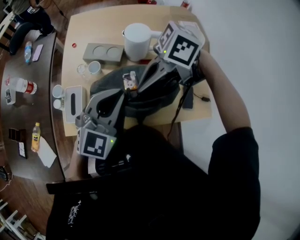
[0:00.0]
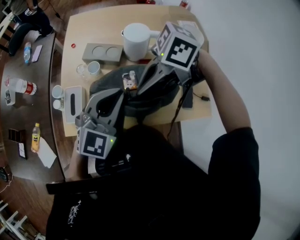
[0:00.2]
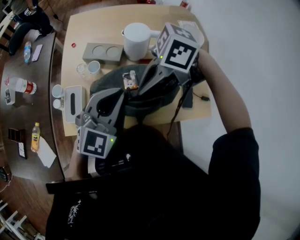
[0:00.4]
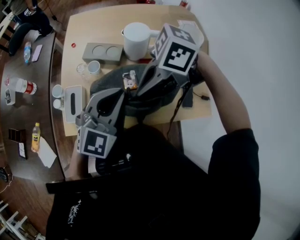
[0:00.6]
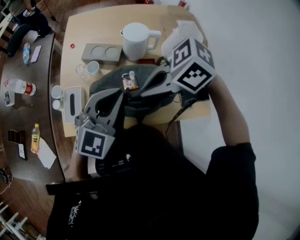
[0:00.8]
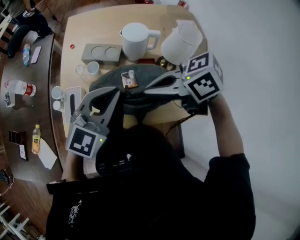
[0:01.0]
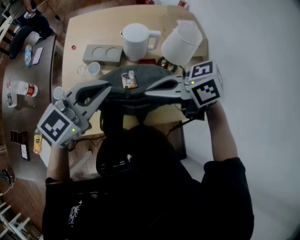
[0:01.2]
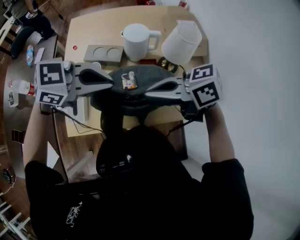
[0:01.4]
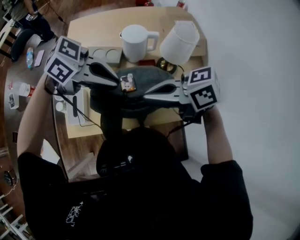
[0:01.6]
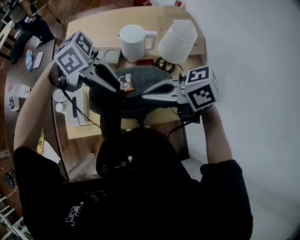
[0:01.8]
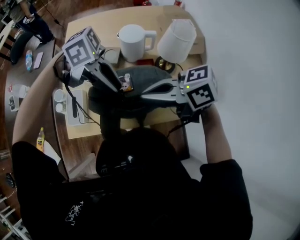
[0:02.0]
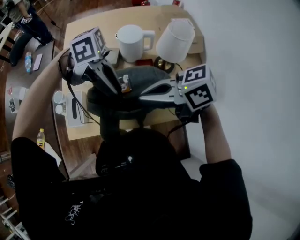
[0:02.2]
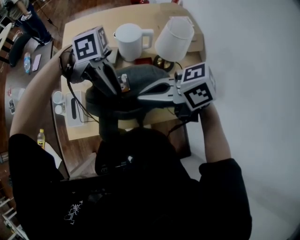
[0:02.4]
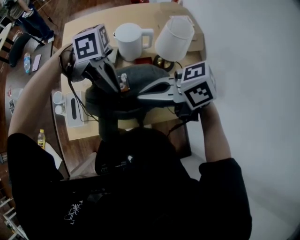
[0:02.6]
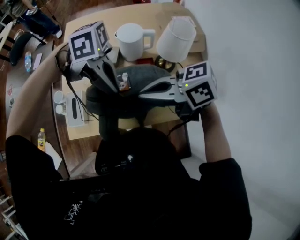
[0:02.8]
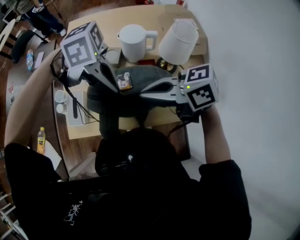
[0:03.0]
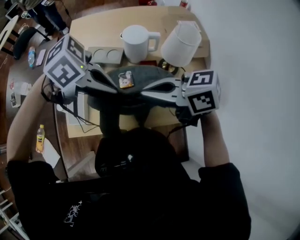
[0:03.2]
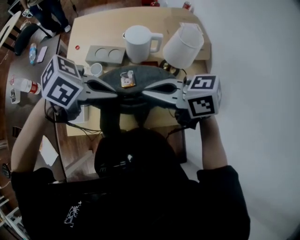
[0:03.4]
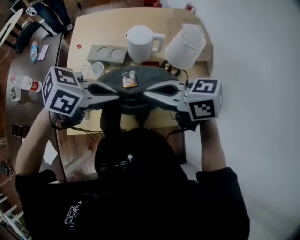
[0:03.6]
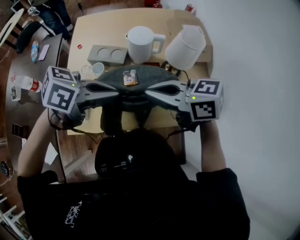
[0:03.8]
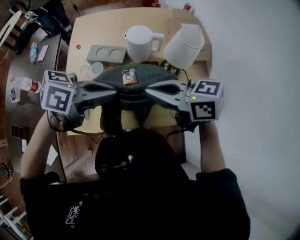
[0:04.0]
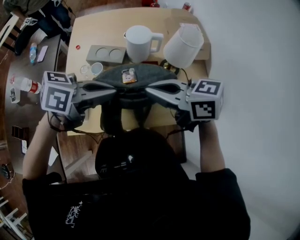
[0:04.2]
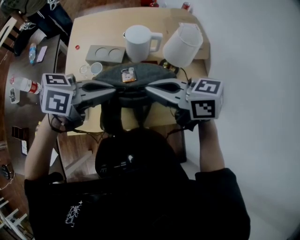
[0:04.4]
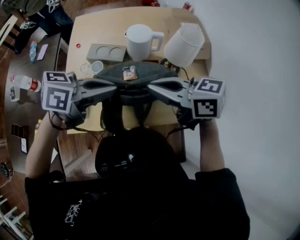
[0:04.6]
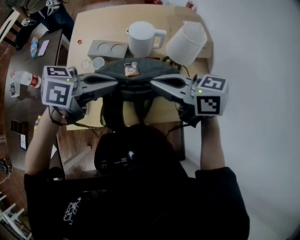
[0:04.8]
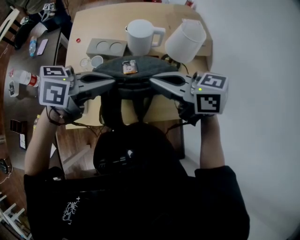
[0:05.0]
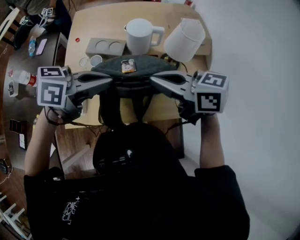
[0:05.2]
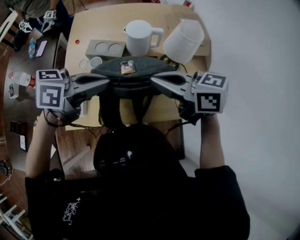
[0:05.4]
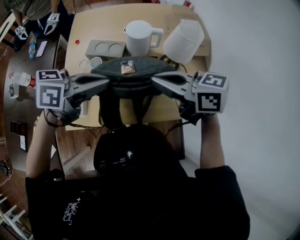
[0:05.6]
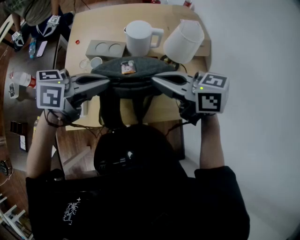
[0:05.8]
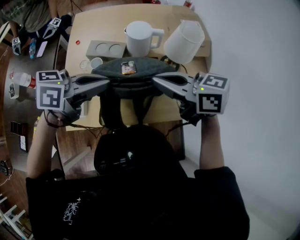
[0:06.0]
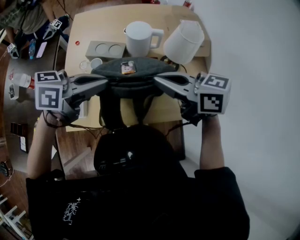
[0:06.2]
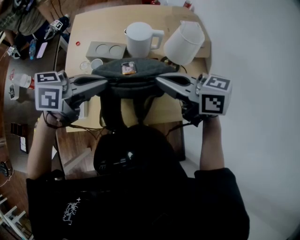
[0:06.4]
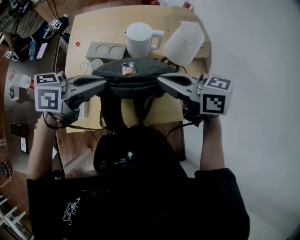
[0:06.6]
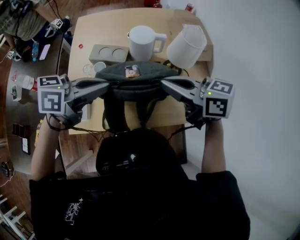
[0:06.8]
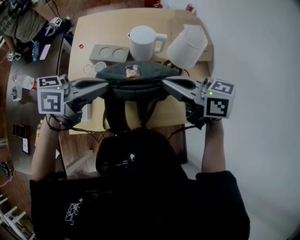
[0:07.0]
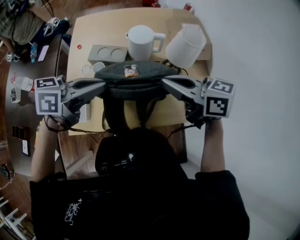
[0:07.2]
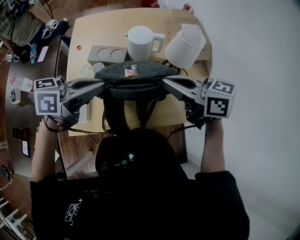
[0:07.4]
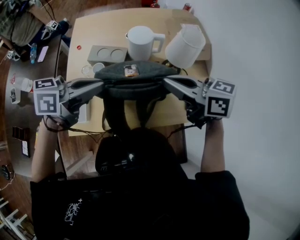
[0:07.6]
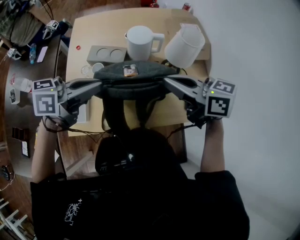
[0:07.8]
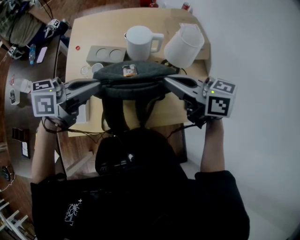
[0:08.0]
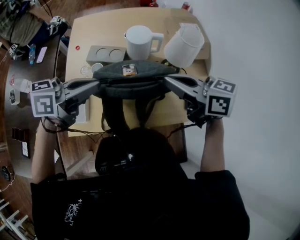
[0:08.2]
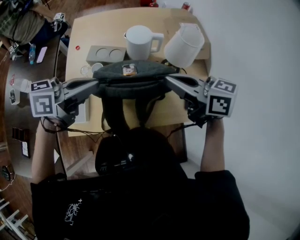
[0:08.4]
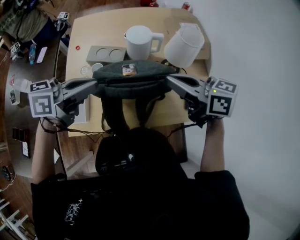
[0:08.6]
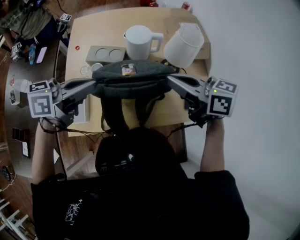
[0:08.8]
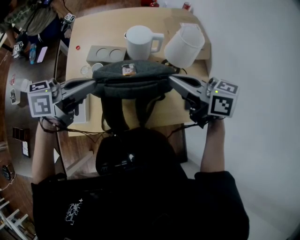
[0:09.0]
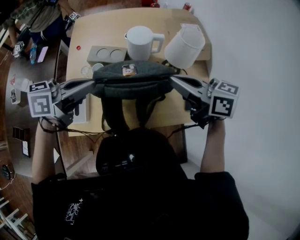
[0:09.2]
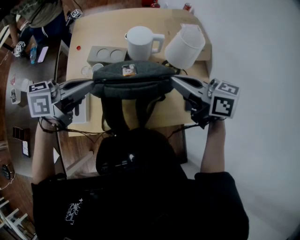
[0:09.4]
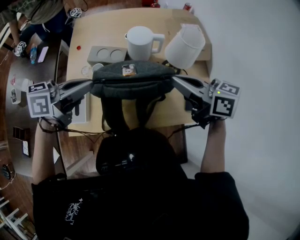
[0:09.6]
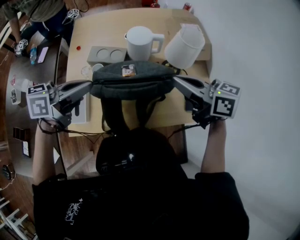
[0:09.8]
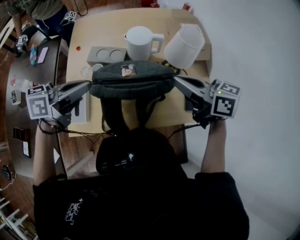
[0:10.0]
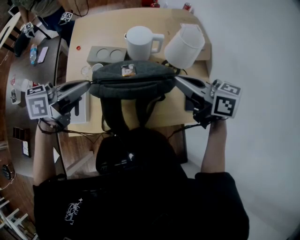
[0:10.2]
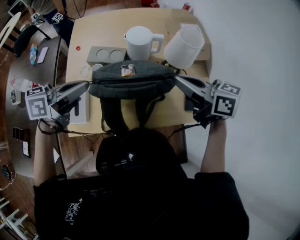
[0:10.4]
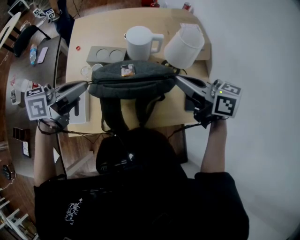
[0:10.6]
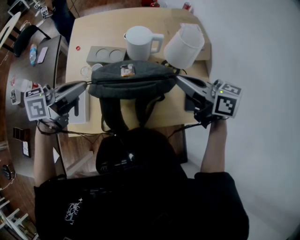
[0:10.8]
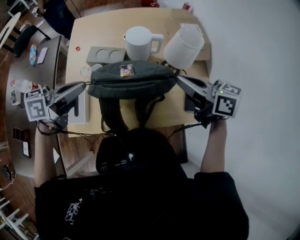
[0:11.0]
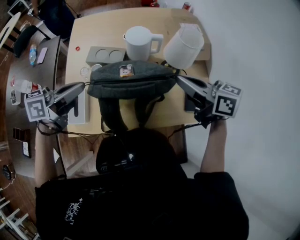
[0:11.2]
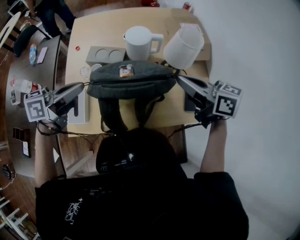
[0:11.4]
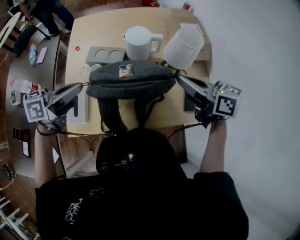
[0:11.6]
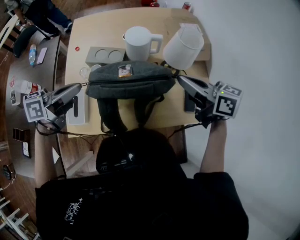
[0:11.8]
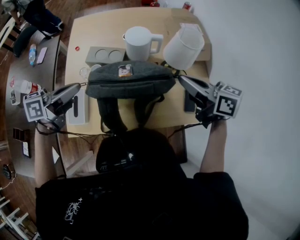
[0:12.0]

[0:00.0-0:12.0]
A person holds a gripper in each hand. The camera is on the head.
0:00.0 to 0:01.6: The left gripper turns by some 80 degrees. The right gripper changes its angle by approximately 40 degrees.
0:01.6 to 0:03.0: The left gripper changes its angle by some 30 degrees, and opens and closes again.
0:03.0 to 0:04.4: The left gripper swivels roughly 60 degrees.
0:04.4 to 0:07.6: There are only small adjustments of the grippers.
0:07.6 to 0:10.4: The grippers make only small movements.
0:10.4 to 0:12.0: The grippers stay close to where they were, moving slightly.

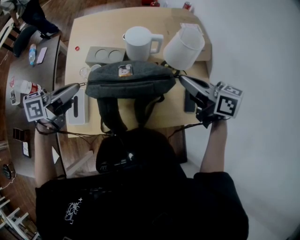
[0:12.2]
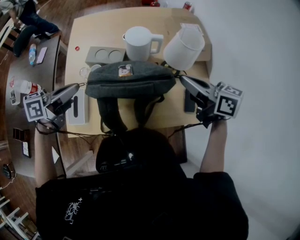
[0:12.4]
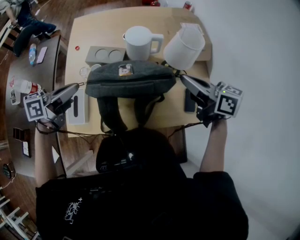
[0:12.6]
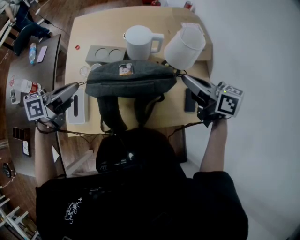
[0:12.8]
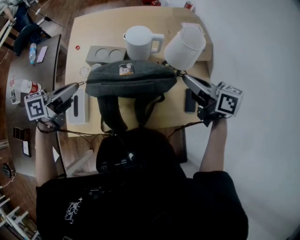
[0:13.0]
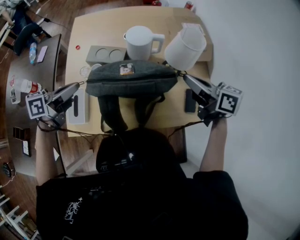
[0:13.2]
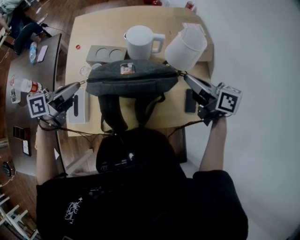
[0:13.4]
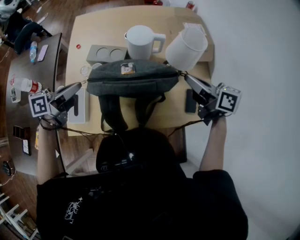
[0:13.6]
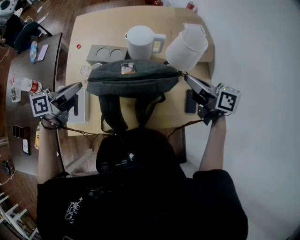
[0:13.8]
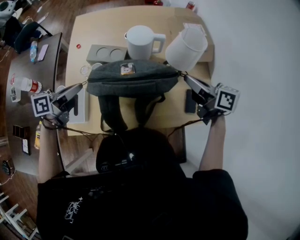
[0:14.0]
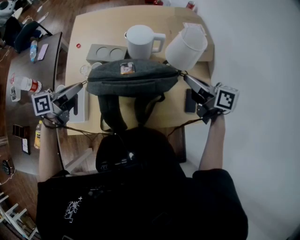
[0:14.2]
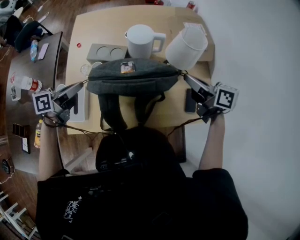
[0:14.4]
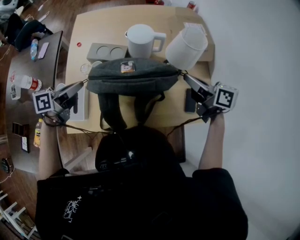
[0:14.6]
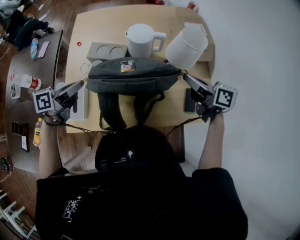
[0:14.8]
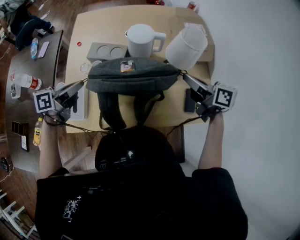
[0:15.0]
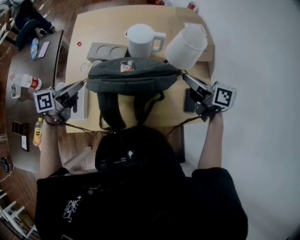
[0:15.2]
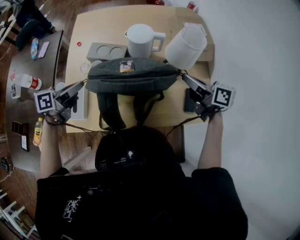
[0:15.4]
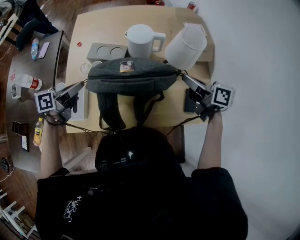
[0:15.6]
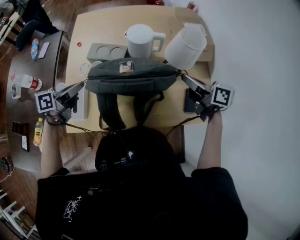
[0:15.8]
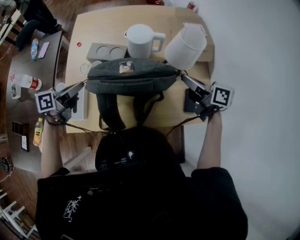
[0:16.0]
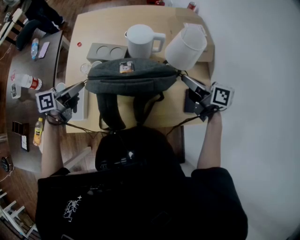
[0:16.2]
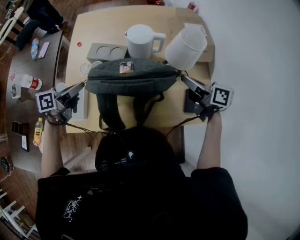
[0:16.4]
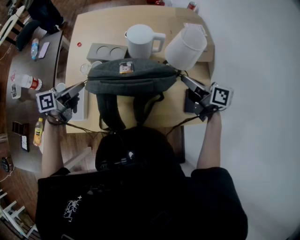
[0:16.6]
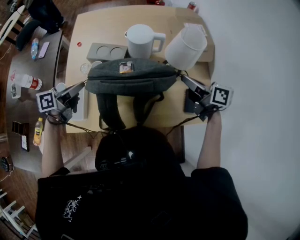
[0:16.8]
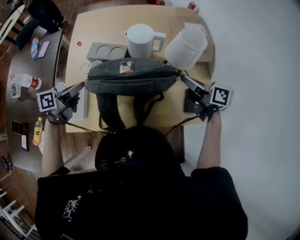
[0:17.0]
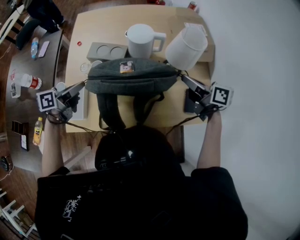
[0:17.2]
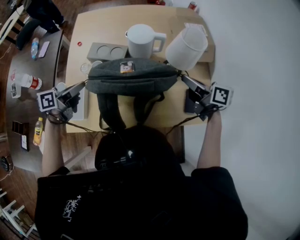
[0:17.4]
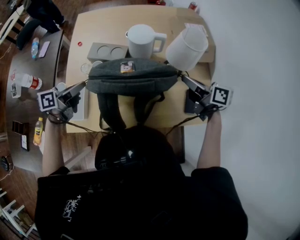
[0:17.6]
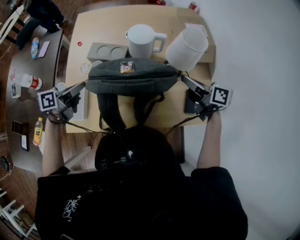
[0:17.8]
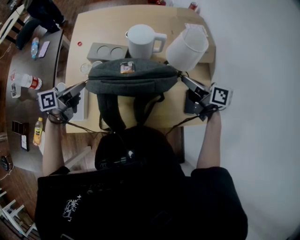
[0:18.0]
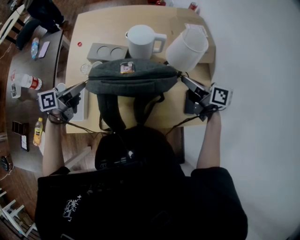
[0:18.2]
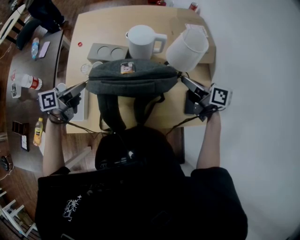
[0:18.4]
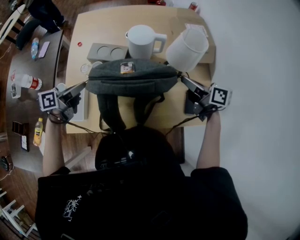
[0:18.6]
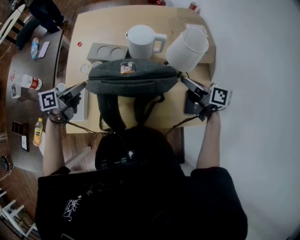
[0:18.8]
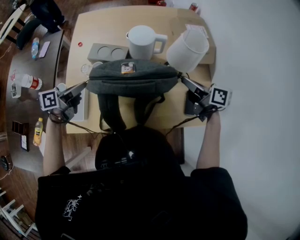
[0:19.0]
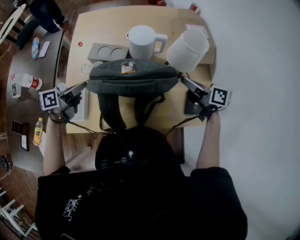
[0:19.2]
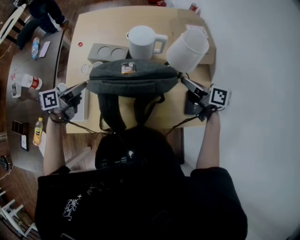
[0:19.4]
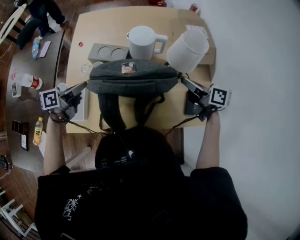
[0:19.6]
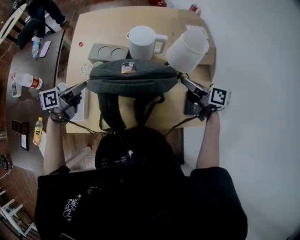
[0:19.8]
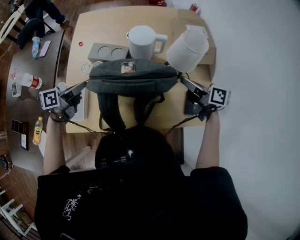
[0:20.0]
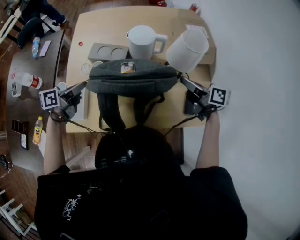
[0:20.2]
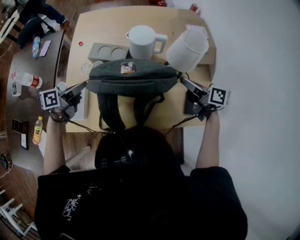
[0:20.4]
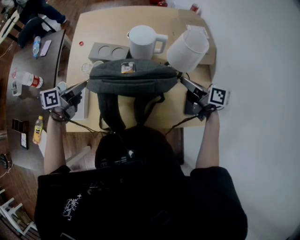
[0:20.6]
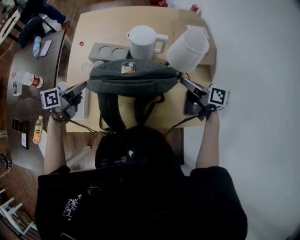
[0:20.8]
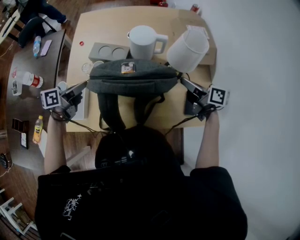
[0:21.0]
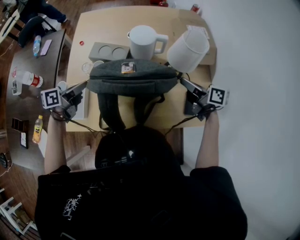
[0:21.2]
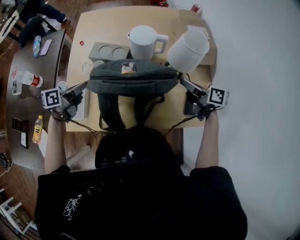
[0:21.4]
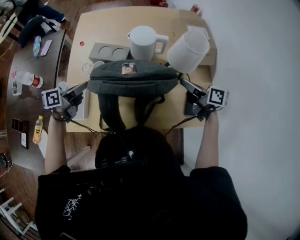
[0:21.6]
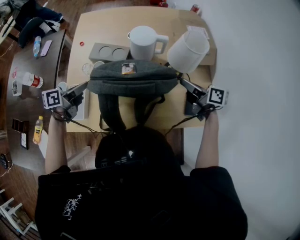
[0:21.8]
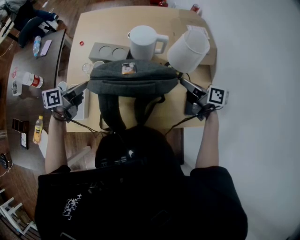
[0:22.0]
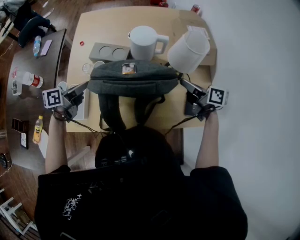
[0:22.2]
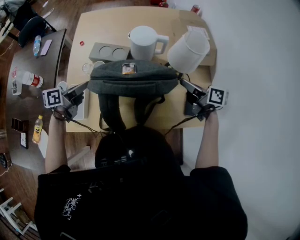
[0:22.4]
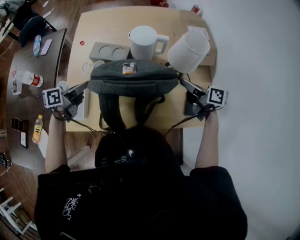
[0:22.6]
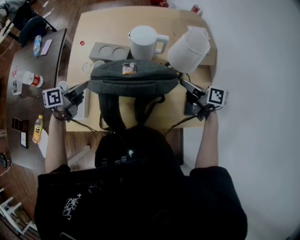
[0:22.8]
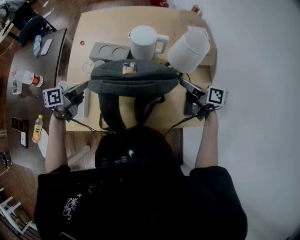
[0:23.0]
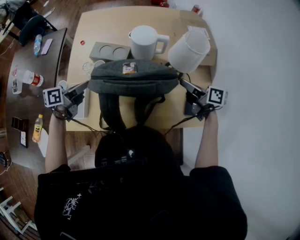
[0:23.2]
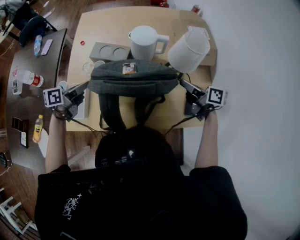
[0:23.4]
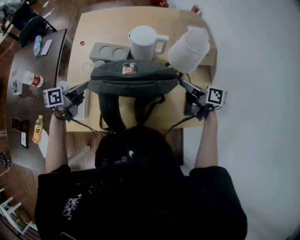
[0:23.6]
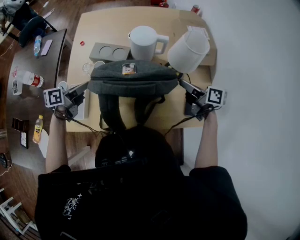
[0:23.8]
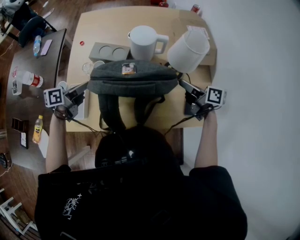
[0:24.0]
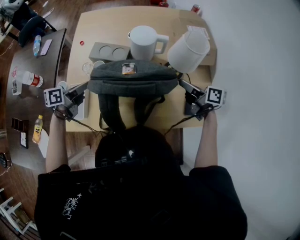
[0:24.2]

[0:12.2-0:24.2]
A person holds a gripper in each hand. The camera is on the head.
0:12.2 to 0:13.8: The right gripper shifts by about 5 cm.
0:13.8 to 0:16.6: The grippers stay close to where they were, moving slightly.
0:16.6 to 0:18.2: The grippers move only a little.
0:18.2 to 0:19.8: Both grippers stay put.
0:19.8 to 0:21.2: There are only small adjustments of the grippers.
0:21.2 to 0:22.6: Both grippers stay about where they are.
0:22.6 to 0:24.2: There are only small adjustments of the grippers.
